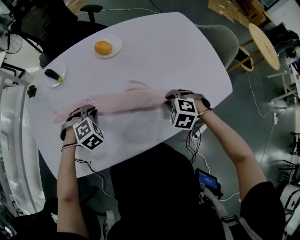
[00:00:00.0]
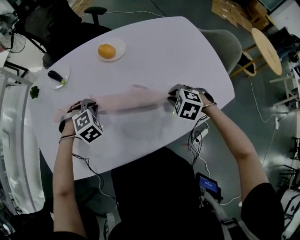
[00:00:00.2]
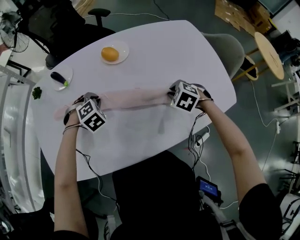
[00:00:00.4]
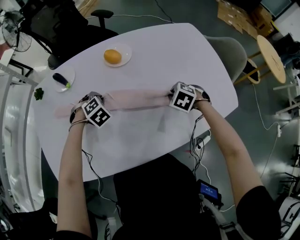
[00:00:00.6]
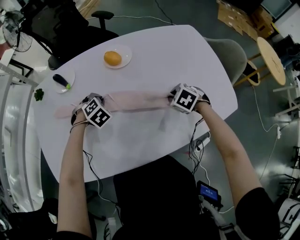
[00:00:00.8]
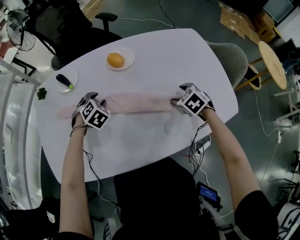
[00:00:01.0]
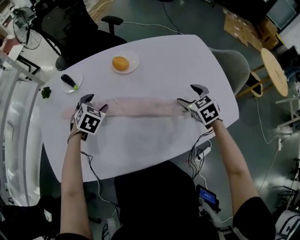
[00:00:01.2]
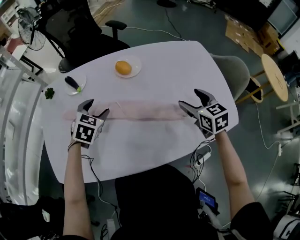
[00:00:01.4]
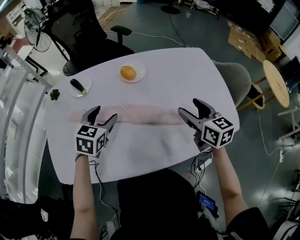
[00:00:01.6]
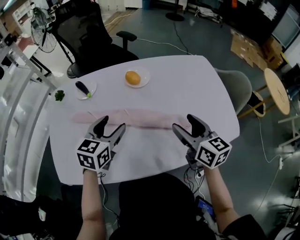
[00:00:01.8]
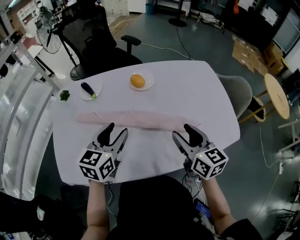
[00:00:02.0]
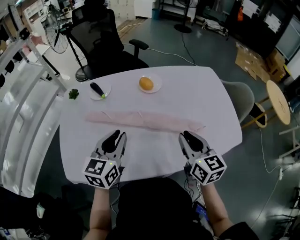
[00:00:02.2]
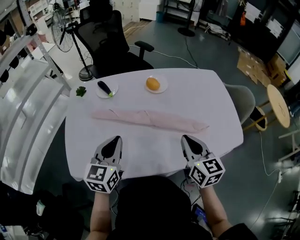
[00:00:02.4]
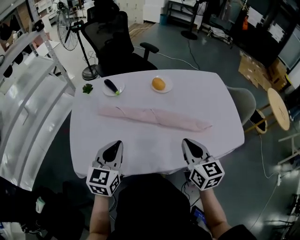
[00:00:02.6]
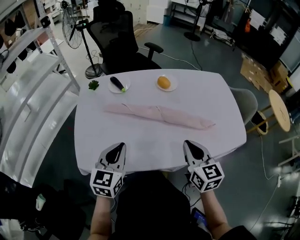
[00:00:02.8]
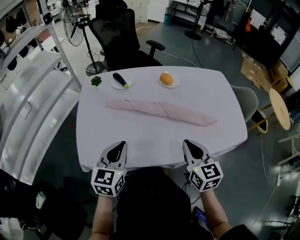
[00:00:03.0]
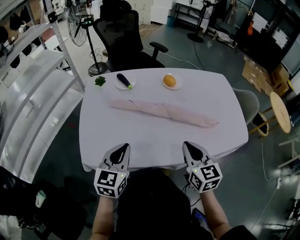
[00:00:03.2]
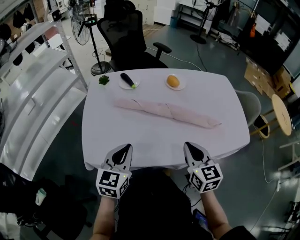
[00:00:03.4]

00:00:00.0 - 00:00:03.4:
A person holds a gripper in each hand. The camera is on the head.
00:00:00.0 - 00:00:01.6: The grippers both shift upward by about 15 cm. The right gripper angles its fingers upward, by some 40 degrees, and opens up. Meanwhile the left gripper twists about 50 degrees counterclockwise, seen from behind, and opens its fingers.
00:00:01.6 - 00:00:03.4: The right gripper travels to the left and backward by approximately 30 cm, and closes. The left gripper is displaced backward and to the left by about 25 cm, rotates roughly 20 degrees, and closes its fingers.

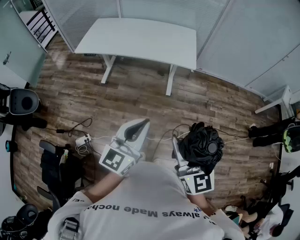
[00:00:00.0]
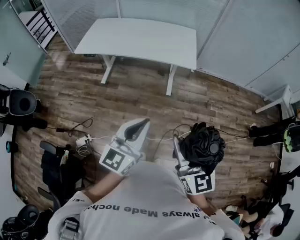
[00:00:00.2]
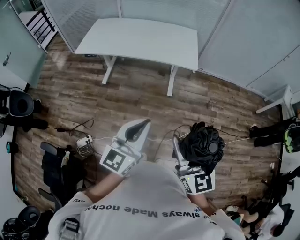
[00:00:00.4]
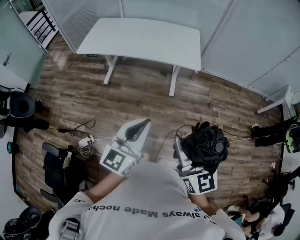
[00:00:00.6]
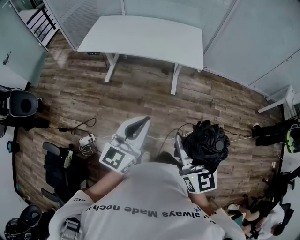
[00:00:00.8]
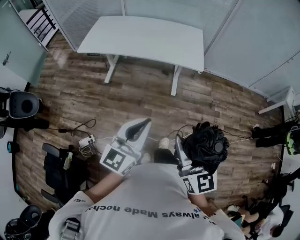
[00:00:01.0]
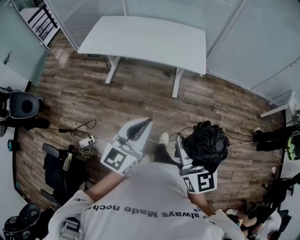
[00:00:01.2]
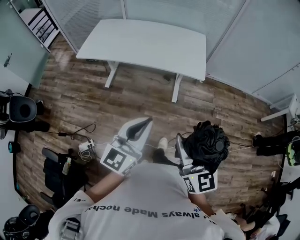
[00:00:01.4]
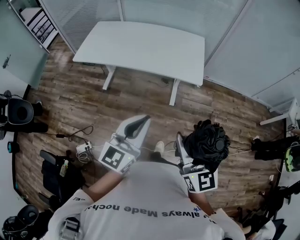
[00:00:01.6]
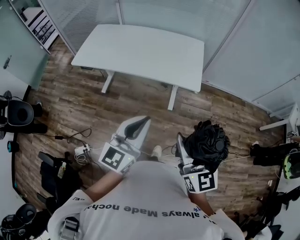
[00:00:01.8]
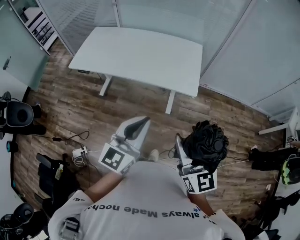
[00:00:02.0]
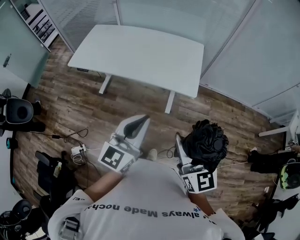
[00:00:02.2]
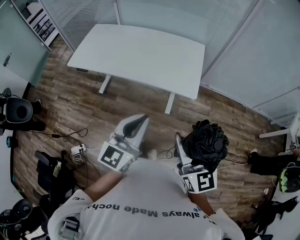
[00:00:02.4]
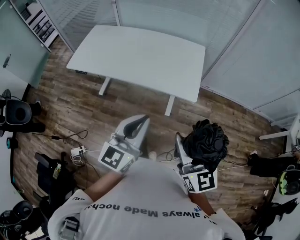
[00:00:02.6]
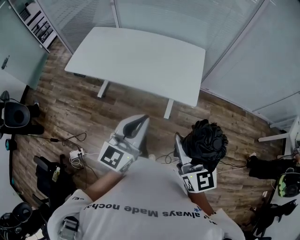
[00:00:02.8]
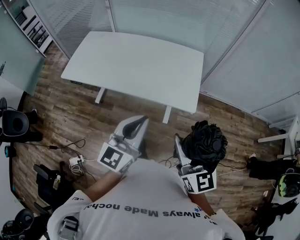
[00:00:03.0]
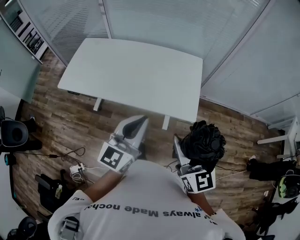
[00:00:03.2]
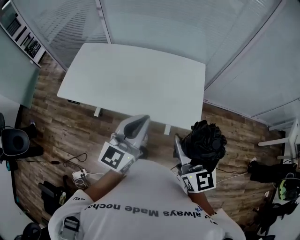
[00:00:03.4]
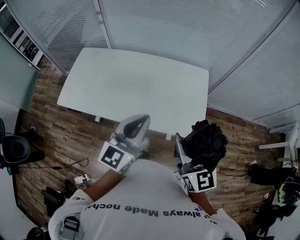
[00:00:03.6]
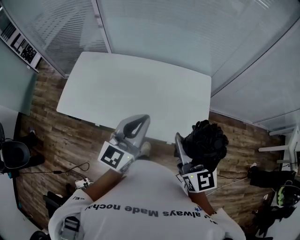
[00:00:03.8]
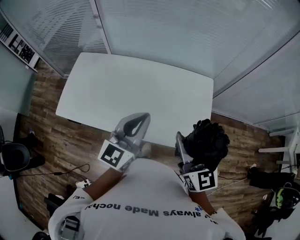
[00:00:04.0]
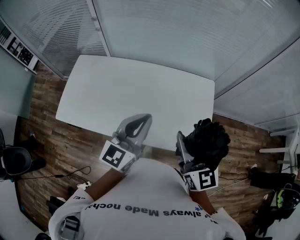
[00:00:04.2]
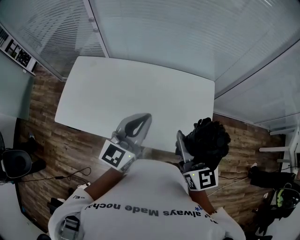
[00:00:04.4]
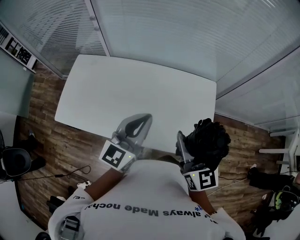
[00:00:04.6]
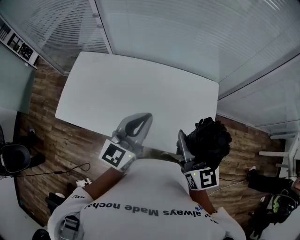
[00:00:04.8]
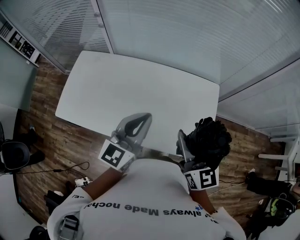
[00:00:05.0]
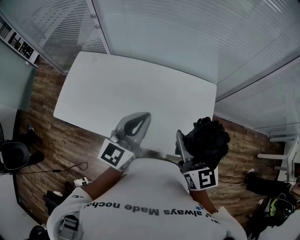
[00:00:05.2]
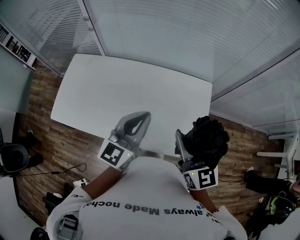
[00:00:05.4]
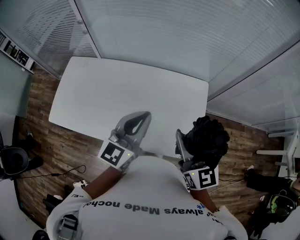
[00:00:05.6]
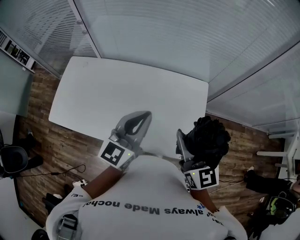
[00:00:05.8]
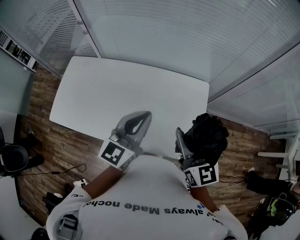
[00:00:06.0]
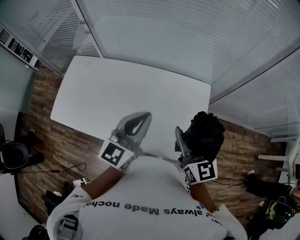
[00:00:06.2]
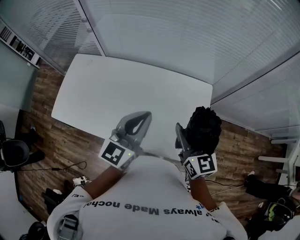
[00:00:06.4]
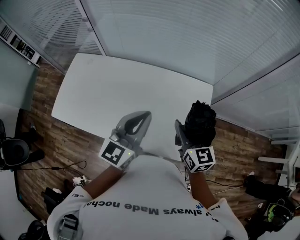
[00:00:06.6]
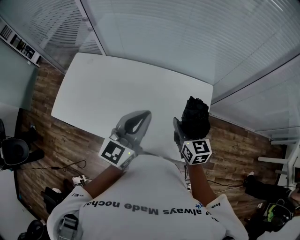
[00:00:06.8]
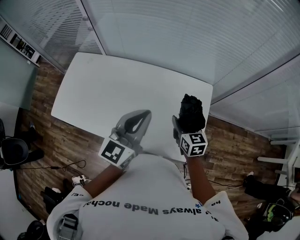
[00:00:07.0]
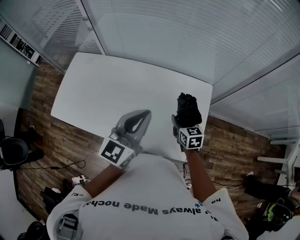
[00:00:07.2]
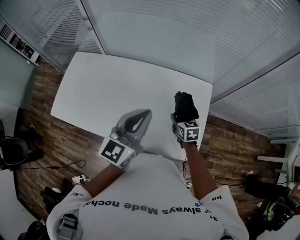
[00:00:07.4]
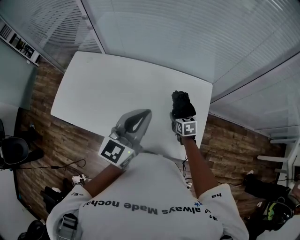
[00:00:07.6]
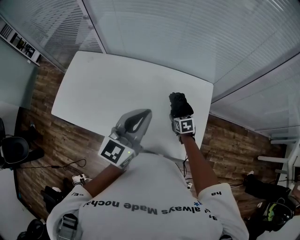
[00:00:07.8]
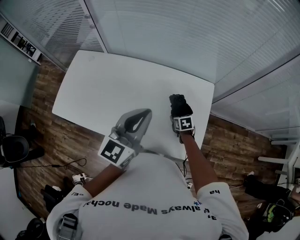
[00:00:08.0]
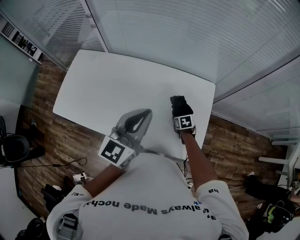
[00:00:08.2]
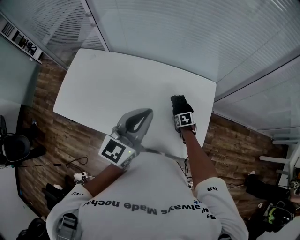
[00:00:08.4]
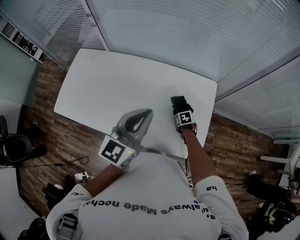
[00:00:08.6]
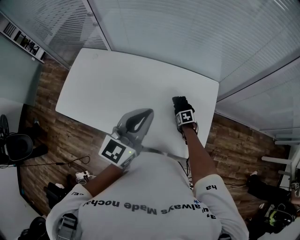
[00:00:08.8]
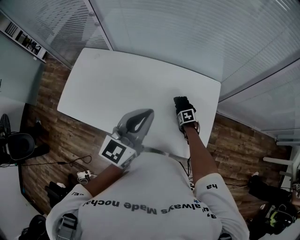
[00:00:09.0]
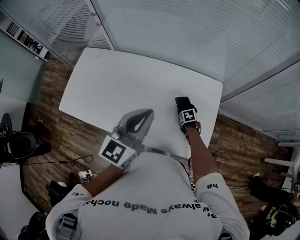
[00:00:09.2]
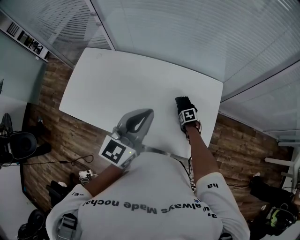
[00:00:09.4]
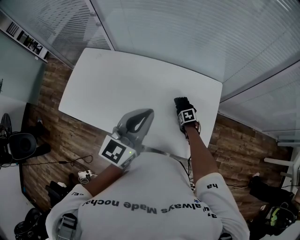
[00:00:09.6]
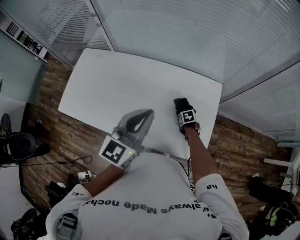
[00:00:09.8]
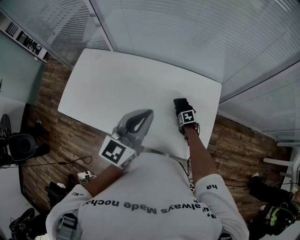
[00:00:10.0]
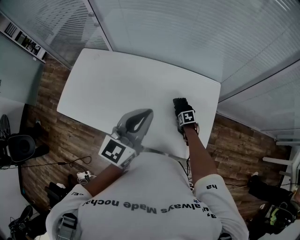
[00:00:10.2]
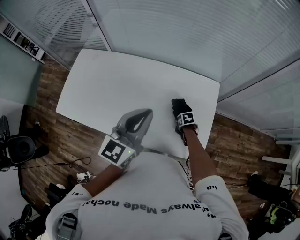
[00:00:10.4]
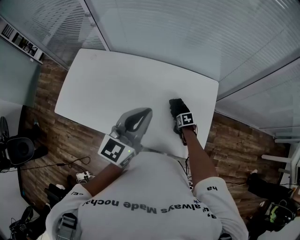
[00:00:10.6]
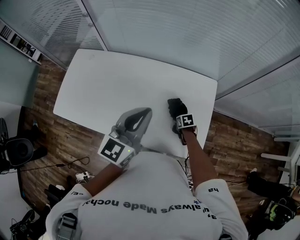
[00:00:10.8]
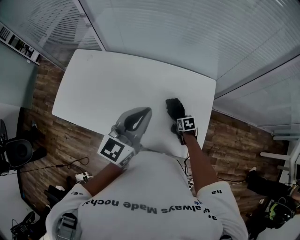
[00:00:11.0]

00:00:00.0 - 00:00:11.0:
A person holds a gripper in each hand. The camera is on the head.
00:00:00.0 - 00:00:01.6: The two grippers go roughly 20 cm forward.
00:00:01.6 - 00:00:03.2: Both grippers move forward, approximately 35 cm.
00:00:03.2 - 00:00:04.8: Both grippers move forward, about 35 cm.
00:00:04.8 - 00:00:06.2: The right gripper is displaced to the right and forward by roughly 10 cm. Meanwhile the left gripper is displaced to the right by approximately 10 cm.
00:00:06.2 - 00:00:07.8: The right gripper heads downward, covering roughly 35 cm, and angles its fingers downward, by about 50 degrees.
00:00:07.8 - 00:00:09.4: The right gripper goes some 10 cm downward, and swivels about 30 degrees.
00:00:09.4 - 00:00:11.0: The grippers move only a little.

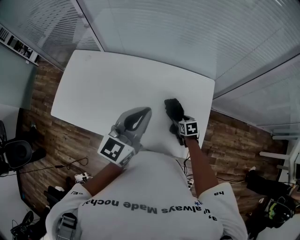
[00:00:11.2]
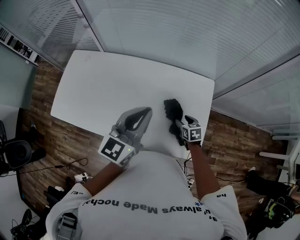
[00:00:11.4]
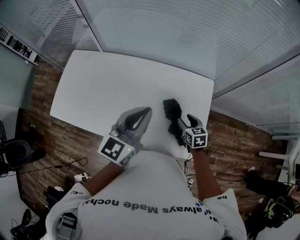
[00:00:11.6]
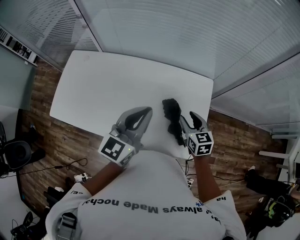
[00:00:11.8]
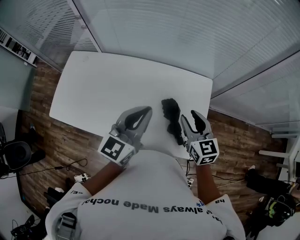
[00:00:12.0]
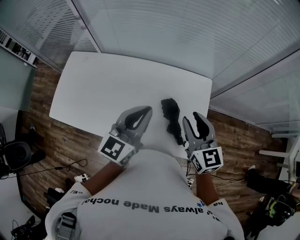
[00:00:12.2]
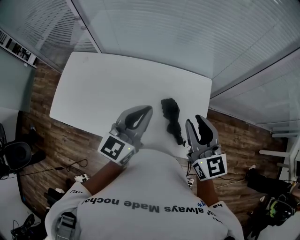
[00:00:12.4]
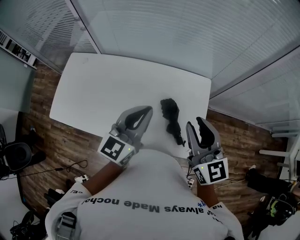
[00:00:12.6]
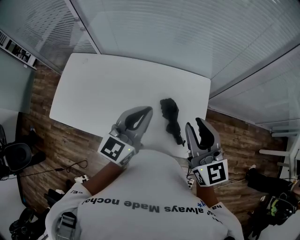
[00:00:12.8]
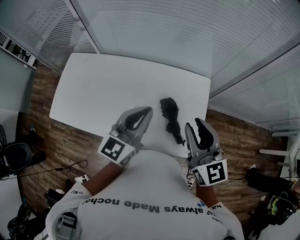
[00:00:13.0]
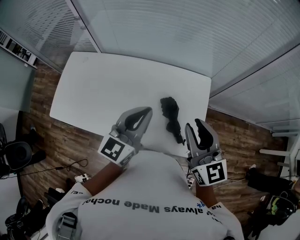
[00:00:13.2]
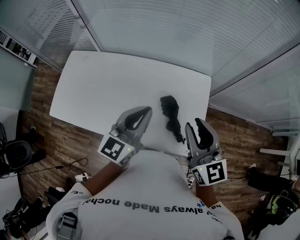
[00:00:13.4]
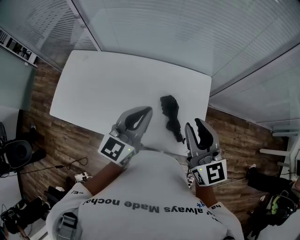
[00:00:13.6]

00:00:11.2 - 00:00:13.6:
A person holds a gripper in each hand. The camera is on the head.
00:00:11.2 - 00:00:12.4: The right gripper travels upward by about 35 cm, tilts its fingers approximately 50 degrees upward, and closes its fingers.
00:00:12.4 - 00:00:13.6: The grippers stay close to where they were, moving slightly.

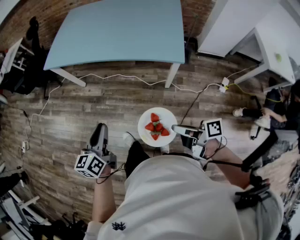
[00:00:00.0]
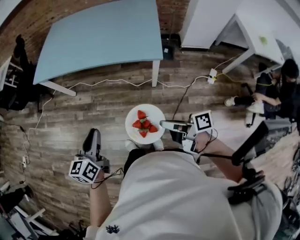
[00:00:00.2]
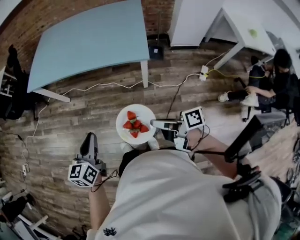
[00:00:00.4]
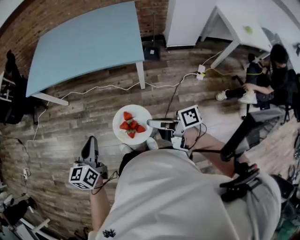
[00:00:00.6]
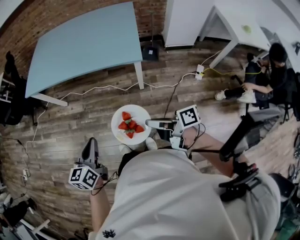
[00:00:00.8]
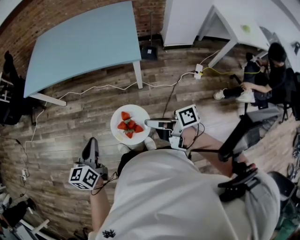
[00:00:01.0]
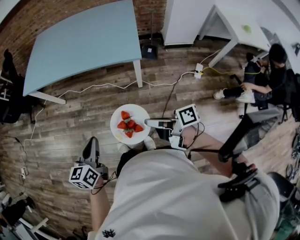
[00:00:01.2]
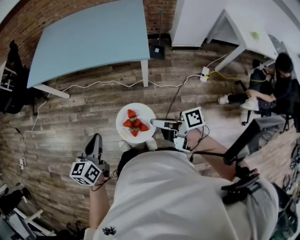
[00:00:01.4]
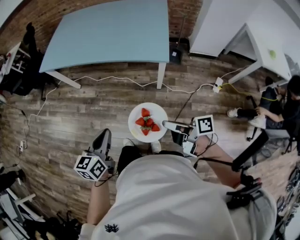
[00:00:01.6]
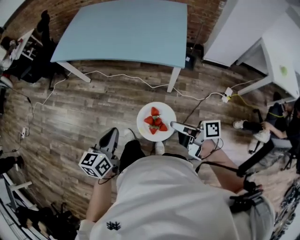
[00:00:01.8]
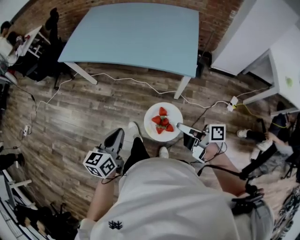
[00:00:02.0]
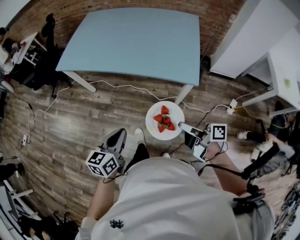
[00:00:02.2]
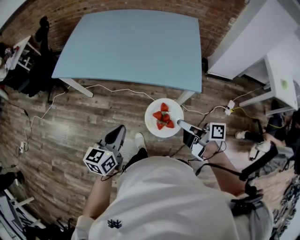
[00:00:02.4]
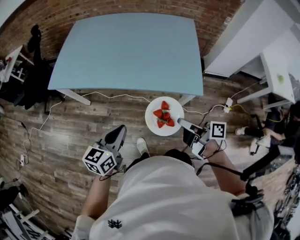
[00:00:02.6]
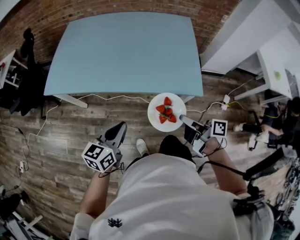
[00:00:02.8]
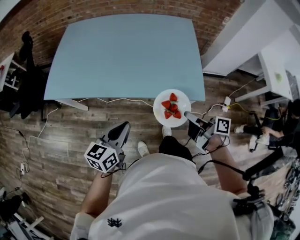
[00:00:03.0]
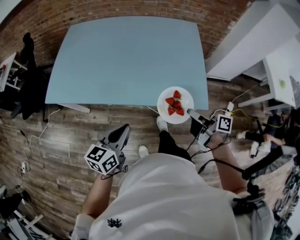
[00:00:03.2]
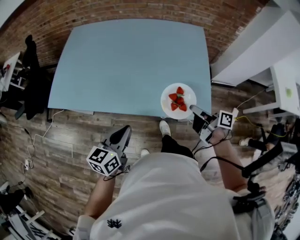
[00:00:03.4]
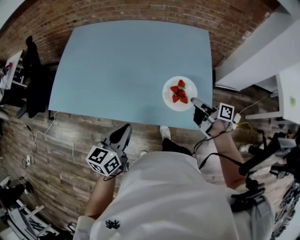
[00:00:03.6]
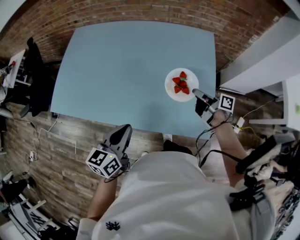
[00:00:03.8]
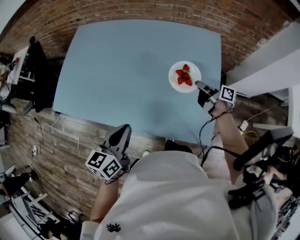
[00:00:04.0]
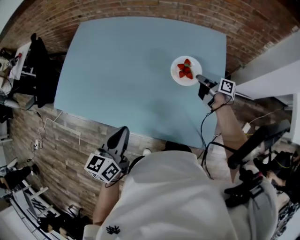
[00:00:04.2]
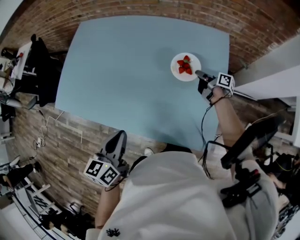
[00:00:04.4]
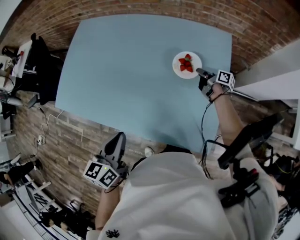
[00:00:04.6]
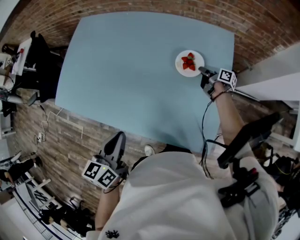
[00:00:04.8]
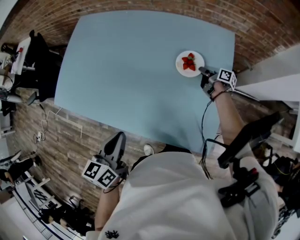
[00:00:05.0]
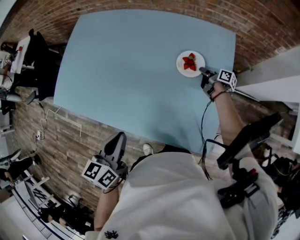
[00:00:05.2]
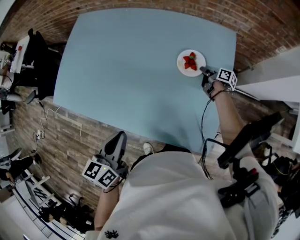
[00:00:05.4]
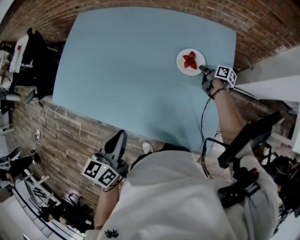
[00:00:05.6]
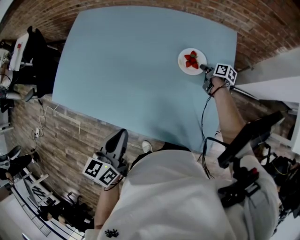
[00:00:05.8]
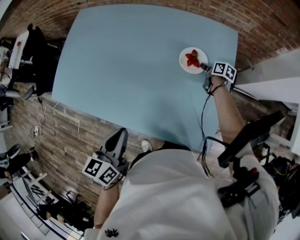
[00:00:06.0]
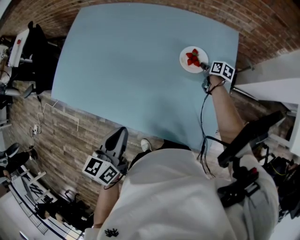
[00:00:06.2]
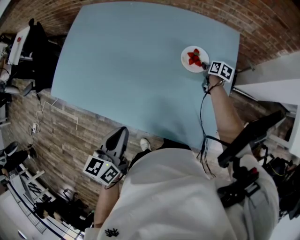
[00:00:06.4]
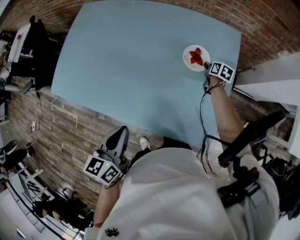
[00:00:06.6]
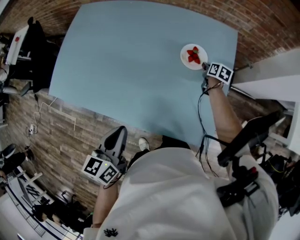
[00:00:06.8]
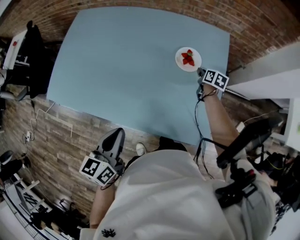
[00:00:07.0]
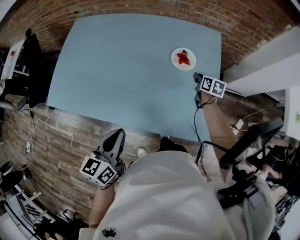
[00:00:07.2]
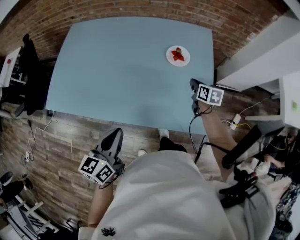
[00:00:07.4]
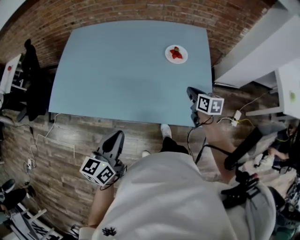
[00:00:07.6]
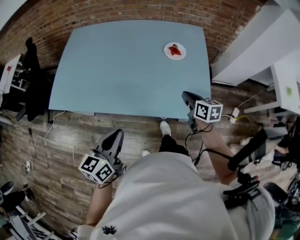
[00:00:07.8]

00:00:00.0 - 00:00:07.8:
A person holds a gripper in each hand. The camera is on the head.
00:00:00.0 - 00:00:01.6: The right gripper moves to the right, roughly 5 cm, while the left gripper heads backward and to the right, covering about 15 cm.
00:00:01.6 - 00:00:03.2: Both grippers move forward, about 35 cm. The right gripper turns by about 20 degrees.
00:00:03.2 - 00:00:04.6: The right gripper moves forward, some 50 cm. The left gripper shifts about 25 cm forward and to the right, and turns by approximately 30 degrees.
00:00:04.6 - 00:00:06.2: The right gripper moves some 5 cm, and rotates some 30 degrees.
00:00:06.2 - 00:00:07.8: The left gripper travels backward and to the left by about 15 cm, while the right gripper moves backward and upward, approximately 40 cm, and changes its angle by approximately 30 degrees.
